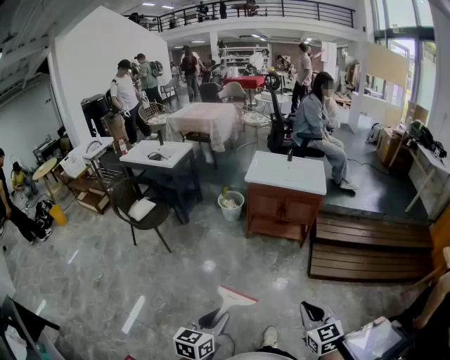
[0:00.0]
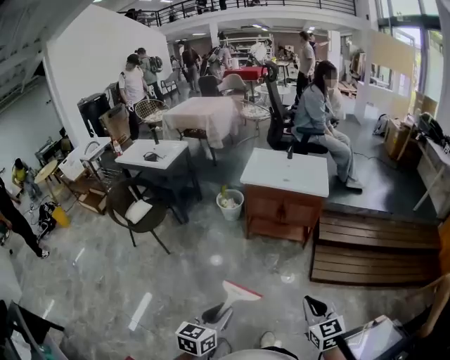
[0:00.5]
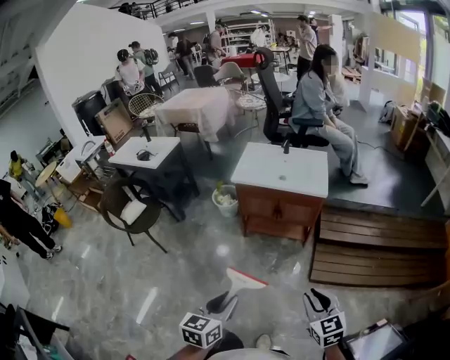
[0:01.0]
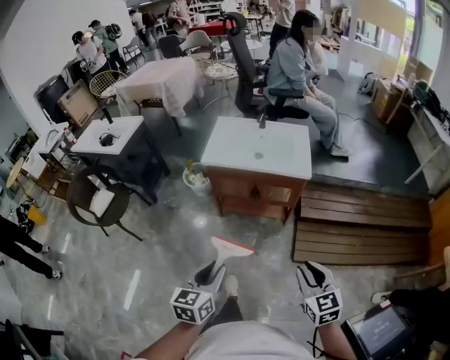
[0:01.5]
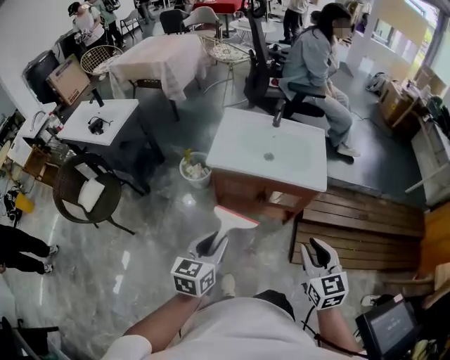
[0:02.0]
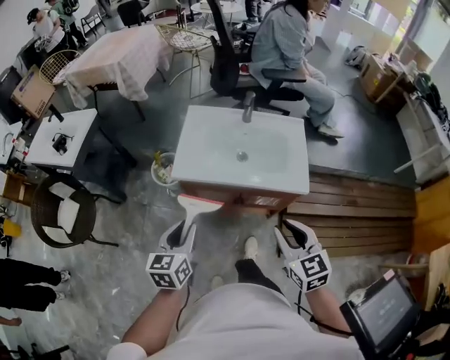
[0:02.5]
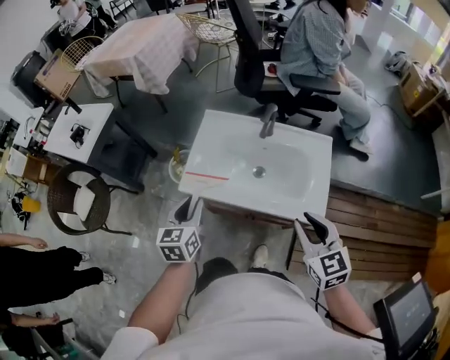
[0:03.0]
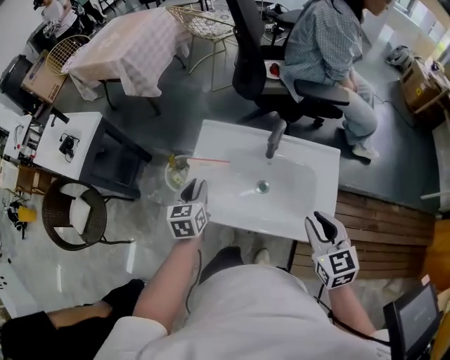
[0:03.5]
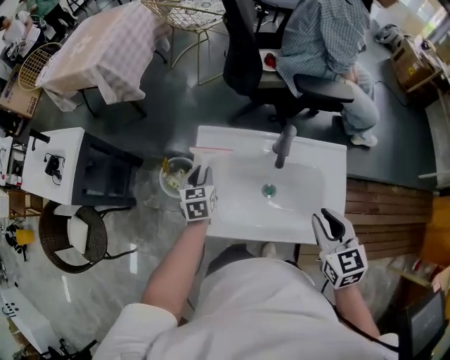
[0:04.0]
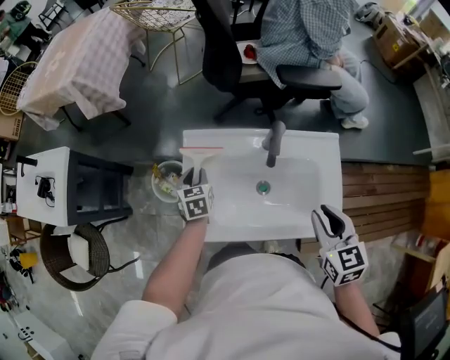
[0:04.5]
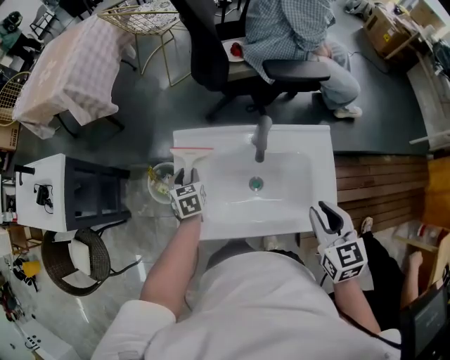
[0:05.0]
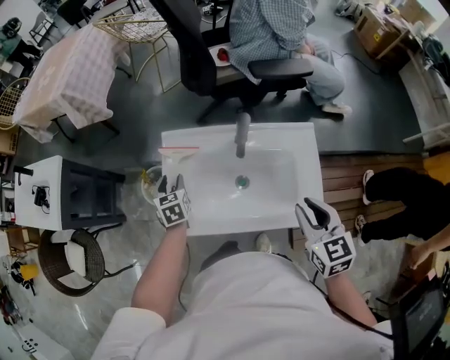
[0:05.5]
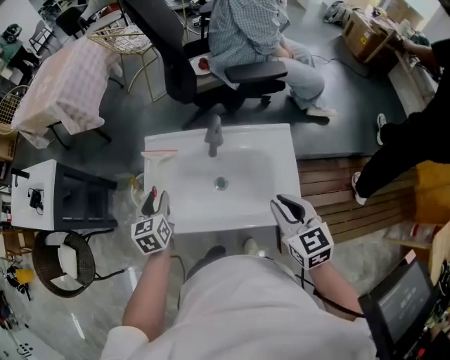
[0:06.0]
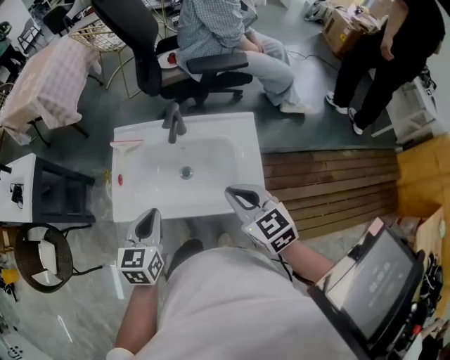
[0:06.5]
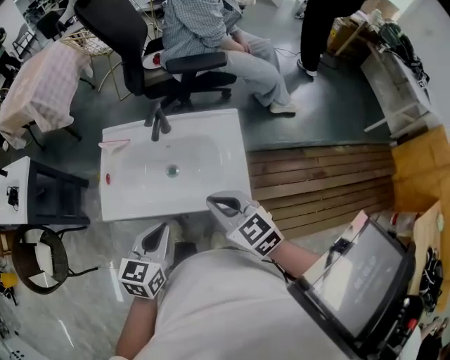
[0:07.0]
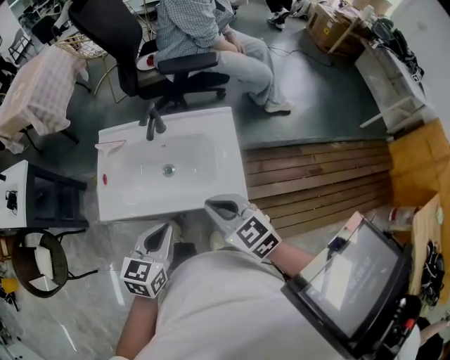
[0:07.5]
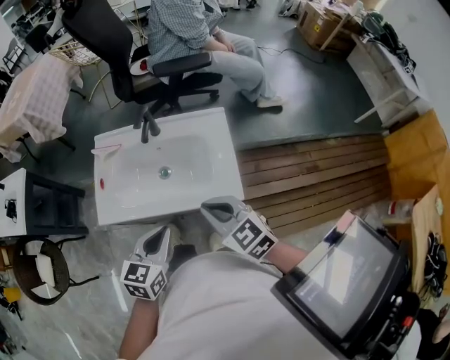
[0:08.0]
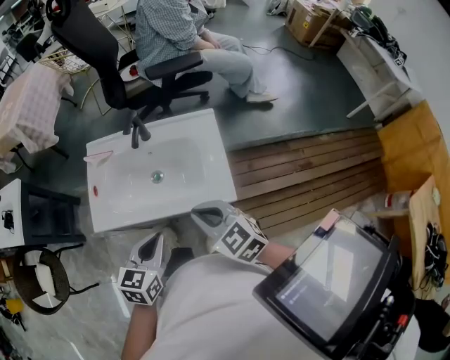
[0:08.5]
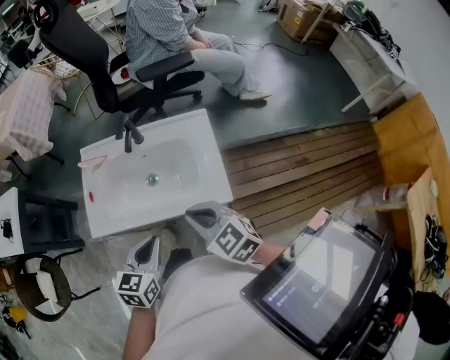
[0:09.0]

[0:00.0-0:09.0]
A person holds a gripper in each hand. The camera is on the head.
0:00.0 to 0:02.0: Both grippers are carried forward, about 70 cm.
0:02.0 to 0:04.5: The two grippers travel together, forward, some 70 cm. The left gripper swivels roughly 30 degrees.
0:04.5 to 0:07.0: The left gripper goes some 50 cm backward, to the right and upward, turns by about 30 degrees, and closes. The right gripper travels backward and to the right by roughly 15 cm, and changes its angle by roughly 30 degrees.
0:07.0 to 0:09.0: The grippers move only a little.

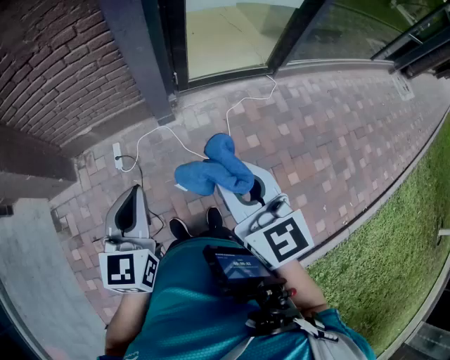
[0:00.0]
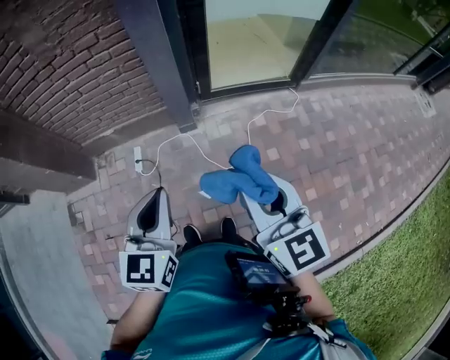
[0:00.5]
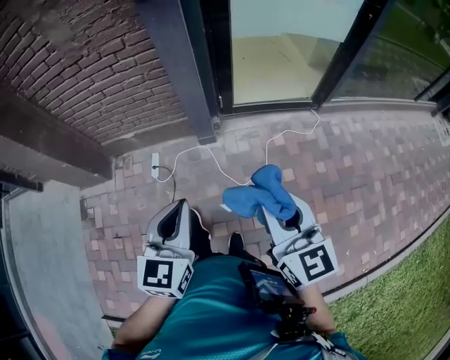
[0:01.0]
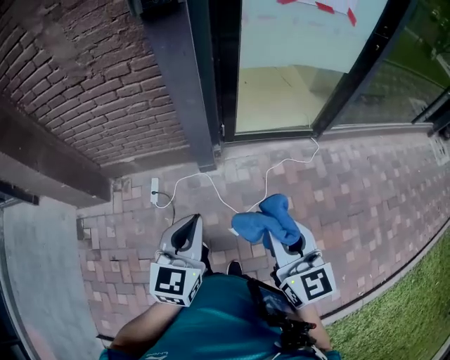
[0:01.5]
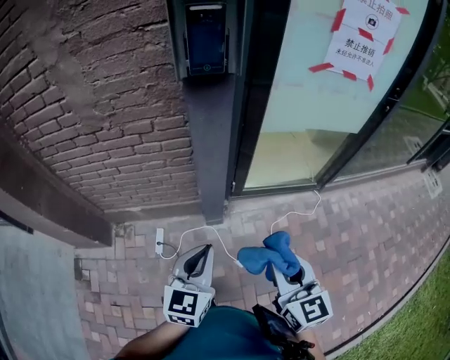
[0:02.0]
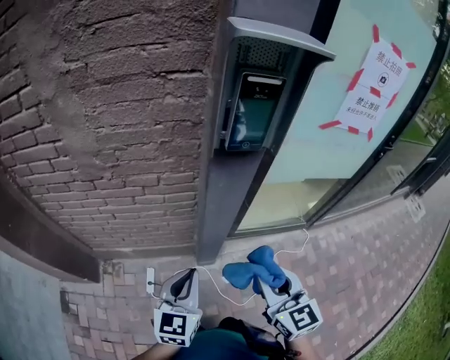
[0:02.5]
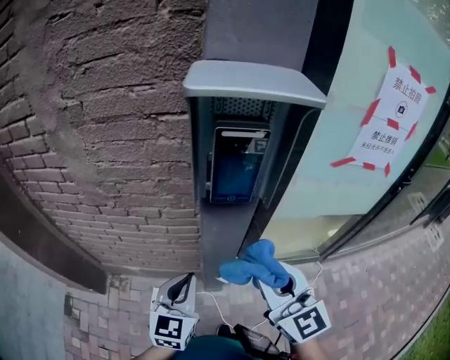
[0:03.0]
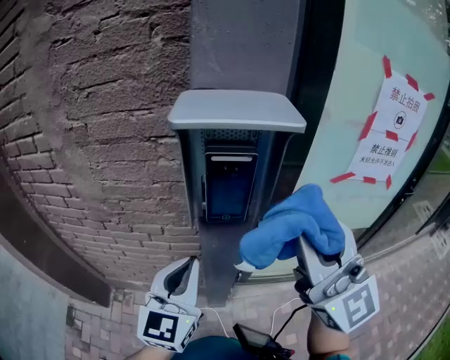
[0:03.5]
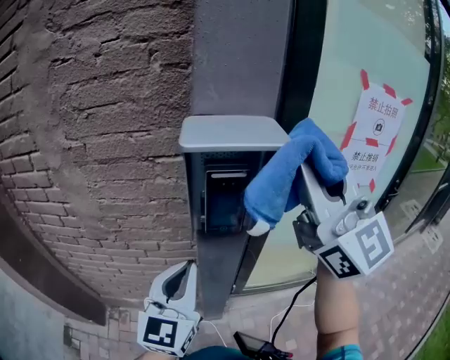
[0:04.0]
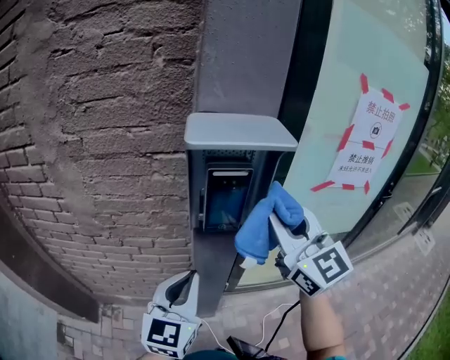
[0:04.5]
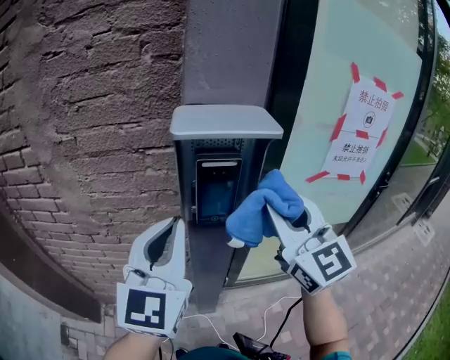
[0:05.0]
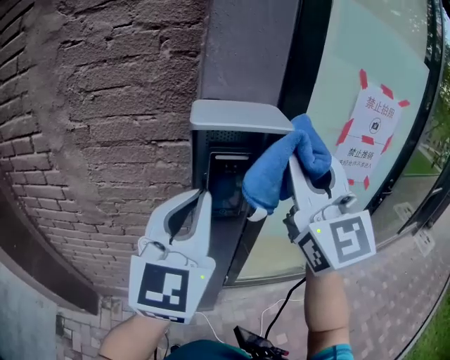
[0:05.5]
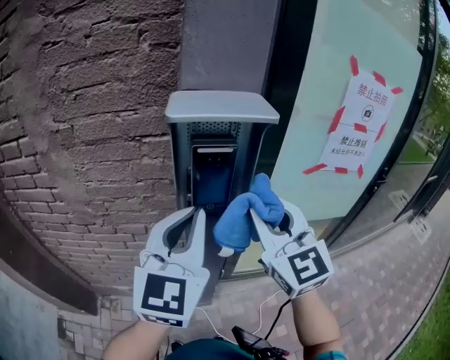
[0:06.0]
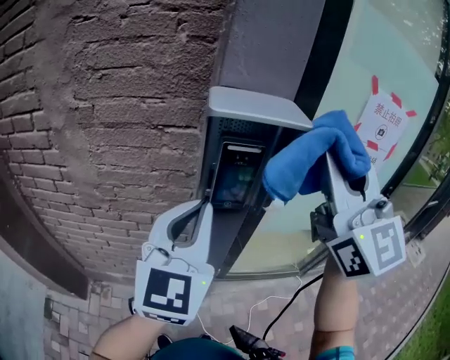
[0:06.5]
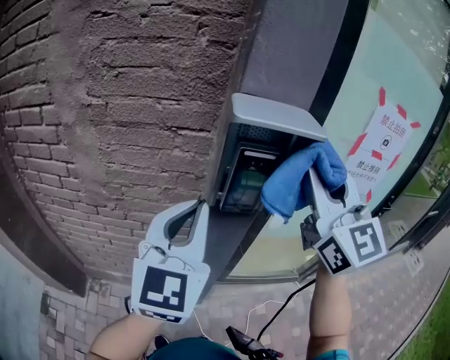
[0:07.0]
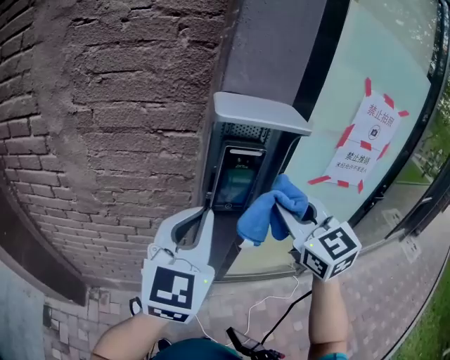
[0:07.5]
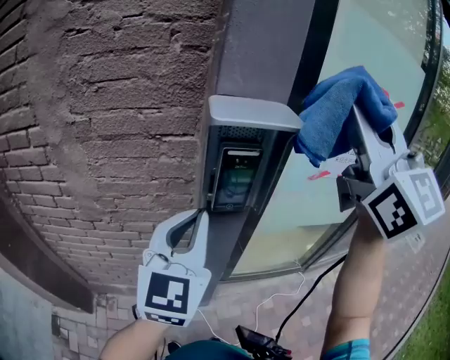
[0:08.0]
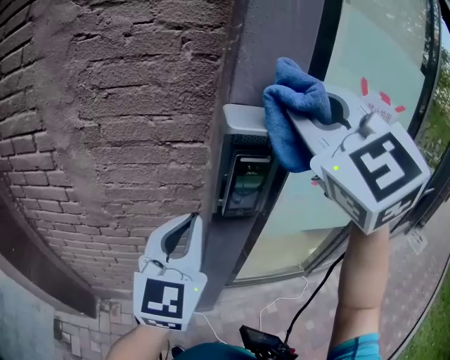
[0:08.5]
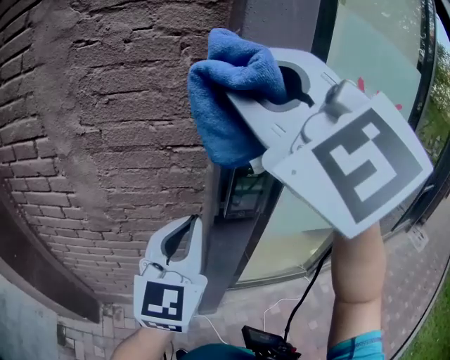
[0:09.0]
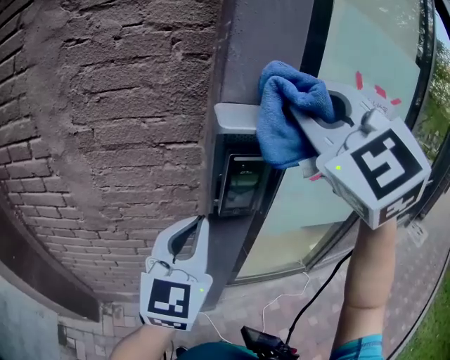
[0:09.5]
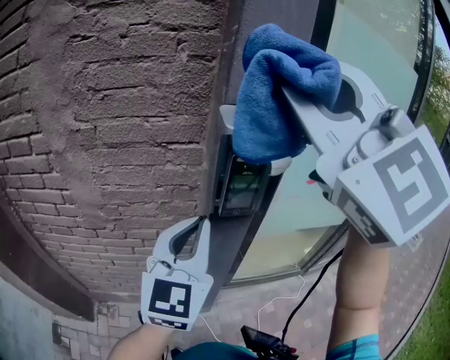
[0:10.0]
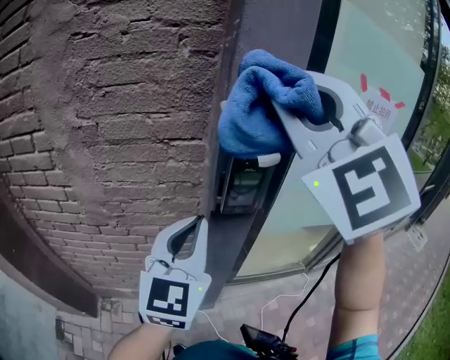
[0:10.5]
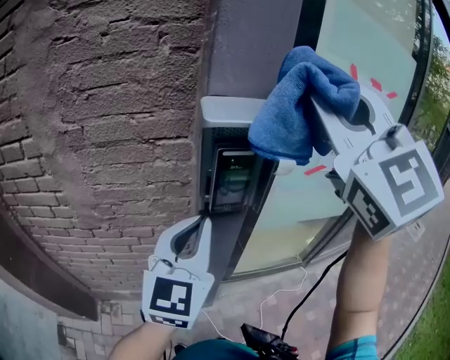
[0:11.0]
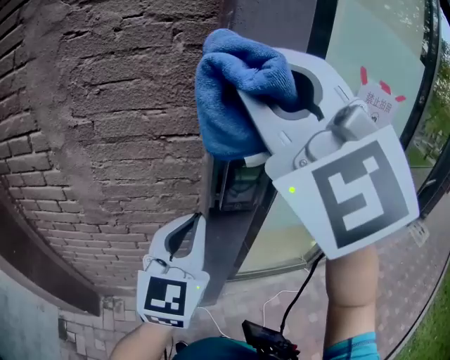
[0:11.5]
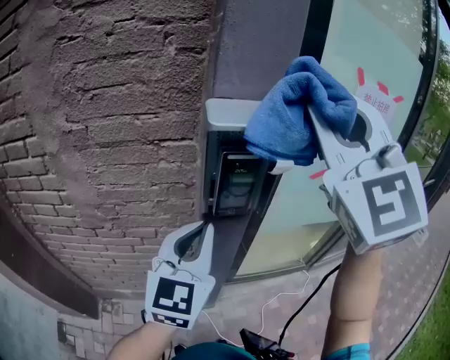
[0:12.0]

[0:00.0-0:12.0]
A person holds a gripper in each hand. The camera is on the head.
0:00.0 to 0:02.0: Both grippers move forward, roughly 20 cm.
0:02.0 to 0:04.0: The left gripper heads forward and upward, covering approximately 30 cm, and rotates about 20 degrees. Meanwhile the right gripper is displaced upward and forward by roughly 50 cm, and tips its fingers upward by approximately 40 degrees.
0:04.0 to 0:06.0: The left gripper moves up and down over some 20 cm, changing direction 2 times; the right gripper moves up and down over approximately 15 cm, changing direction 2 times, and rotates roughly 30 degrees.
0:06.0 to 0:08.0: The right gripper goes up and down, approximately 25 cm each way, reversing 2 times, and turns by about 20 degrees.
0:08.0 to 0:10.0: The right gripper moves left and right over about 20 cm, changing direction 2 times, and changes its angle by some 30 degrees.
0:10.0 to 0:12.0: The right gripper moves left and right over some 10 cm, changing direction 2 times.

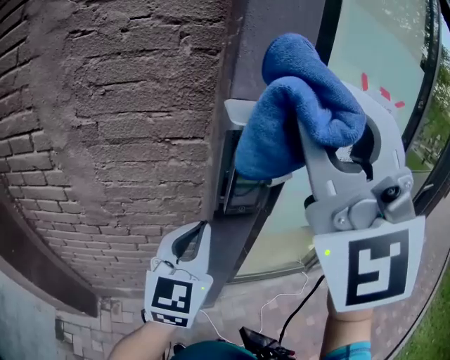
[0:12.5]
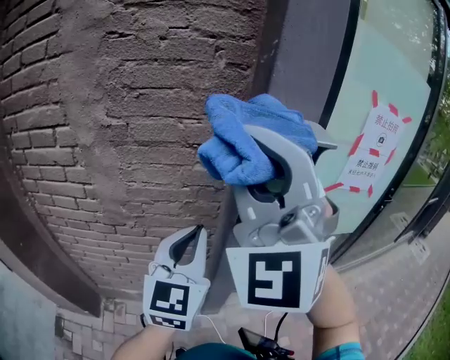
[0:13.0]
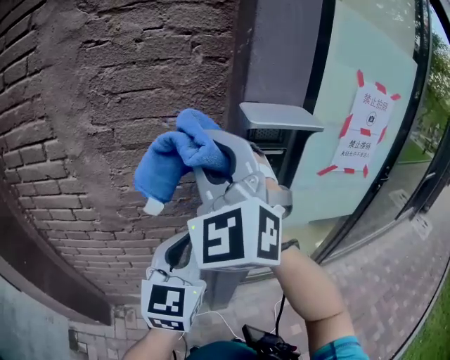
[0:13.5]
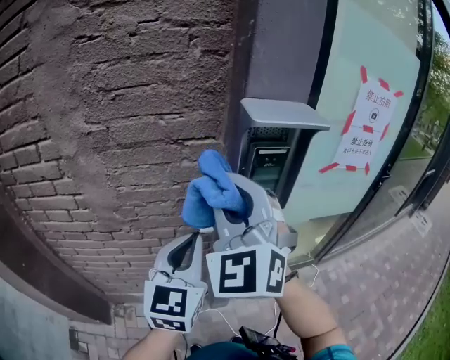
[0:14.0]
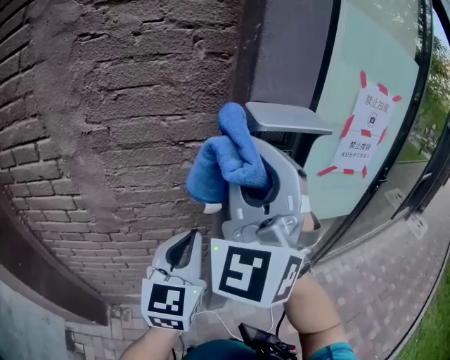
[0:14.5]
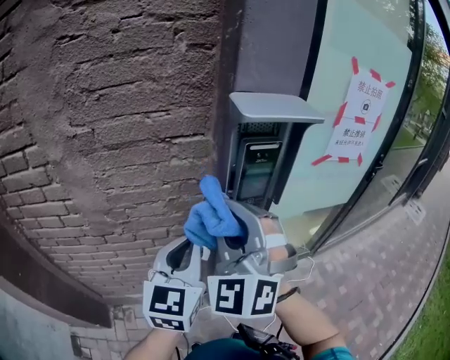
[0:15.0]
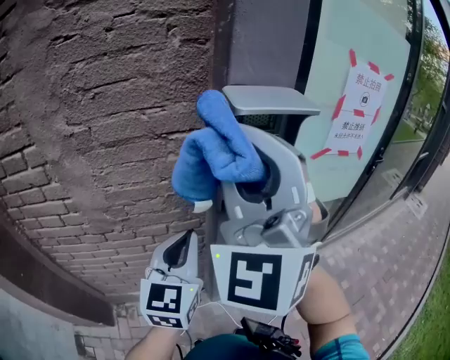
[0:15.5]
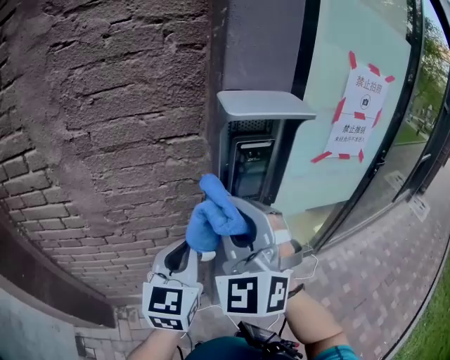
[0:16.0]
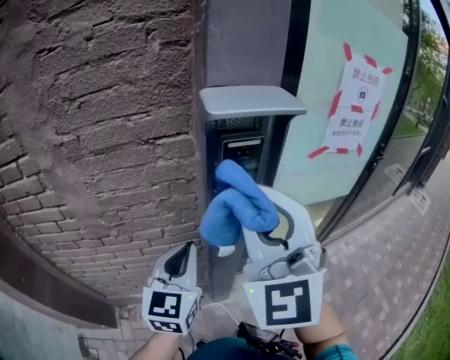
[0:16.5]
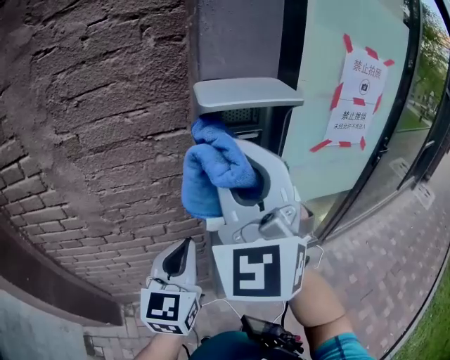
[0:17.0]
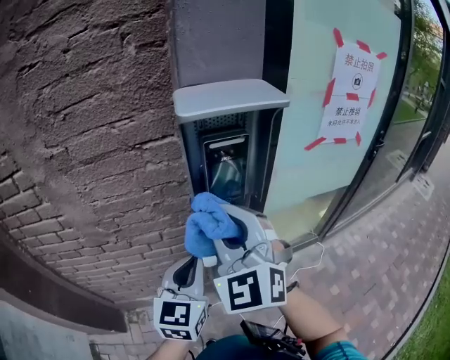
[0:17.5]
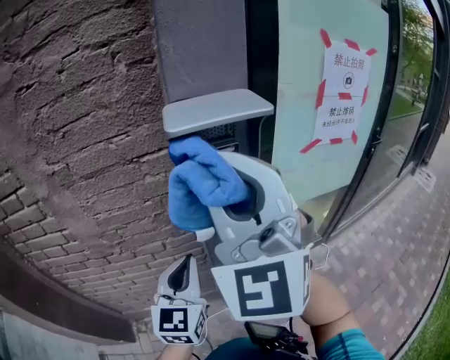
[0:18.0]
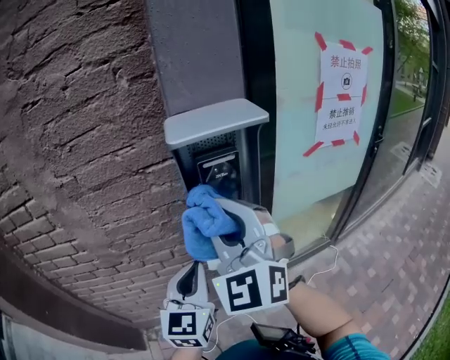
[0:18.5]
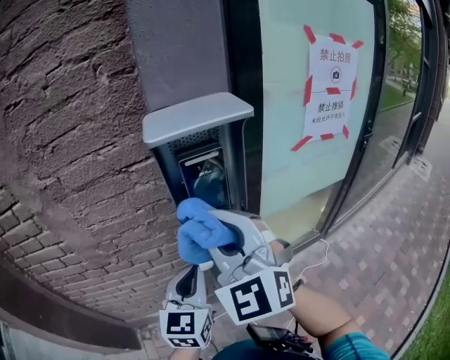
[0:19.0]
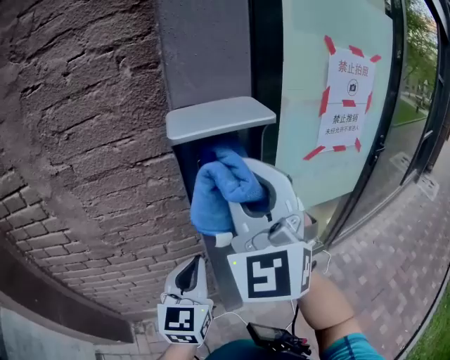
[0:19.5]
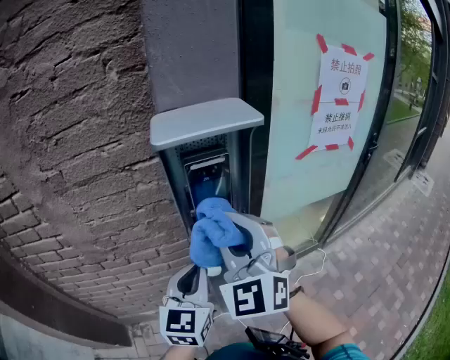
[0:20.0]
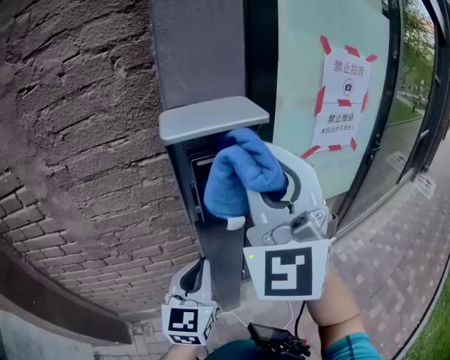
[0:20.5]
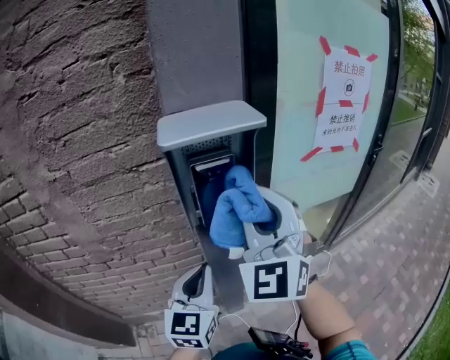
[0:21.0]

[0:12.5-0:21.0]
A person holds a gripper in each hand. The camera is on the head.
0:12.5 to 0:14.5: The right gripper travels downward, forward and to the left by about 15 cm, and changes its angle by about 20 degrees. The left gripper travels to the left by some 5 cm.
0:14.5 to 0:16.5: The right gripper goes up and down, roughly 15 cm each way, reversing 3 times. Meanwhile the left gripper moves downward, about 5 cm.
0:16.5 to 0:19.0: The right gripper moves up and down over about 15 cm, changing direction 2 times.
0:19.0 to 0:21.0: The right gripper moves up and down over roughly 15 cm, changing direction 3 times.
